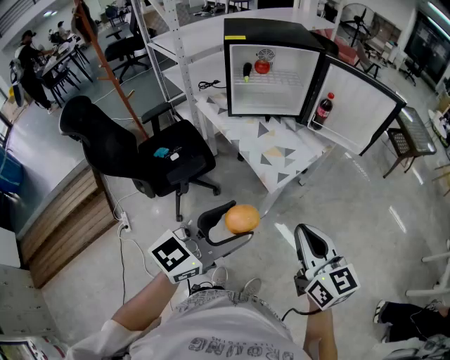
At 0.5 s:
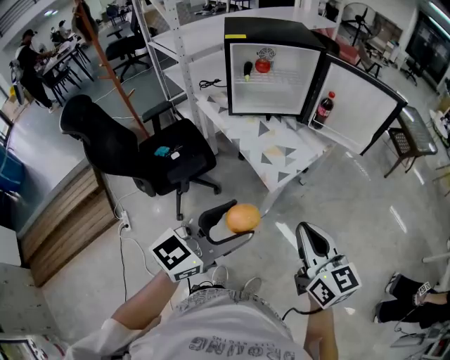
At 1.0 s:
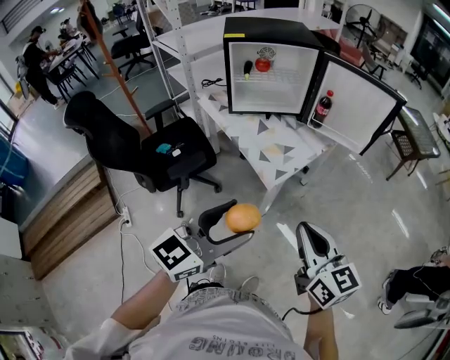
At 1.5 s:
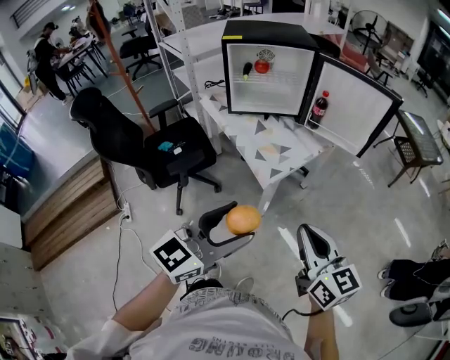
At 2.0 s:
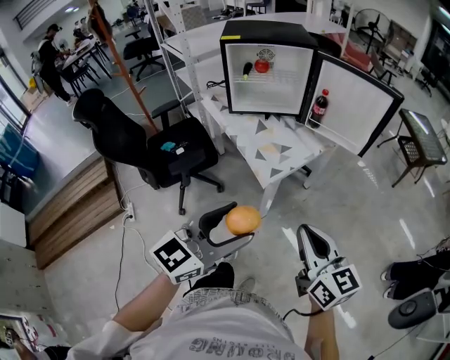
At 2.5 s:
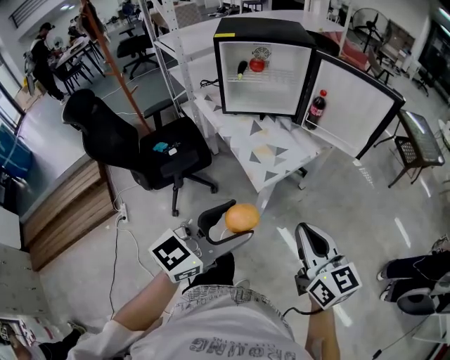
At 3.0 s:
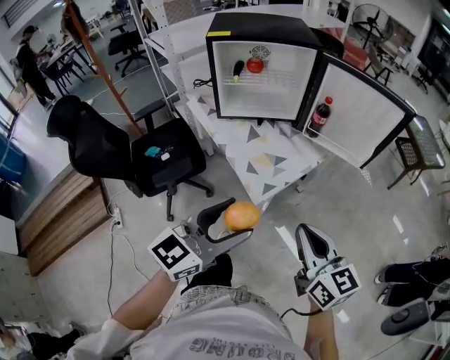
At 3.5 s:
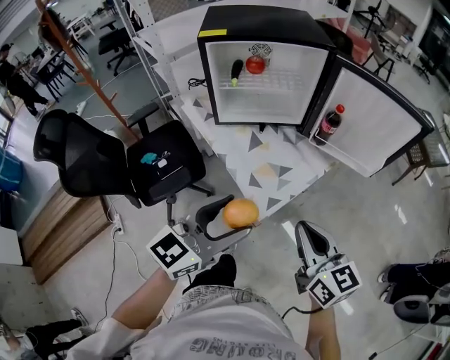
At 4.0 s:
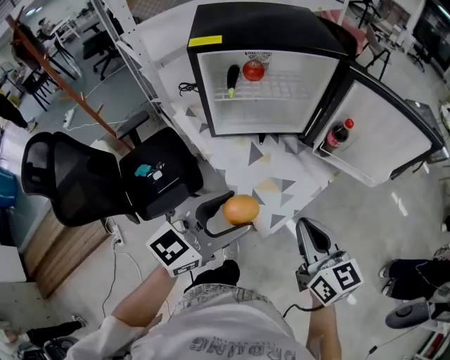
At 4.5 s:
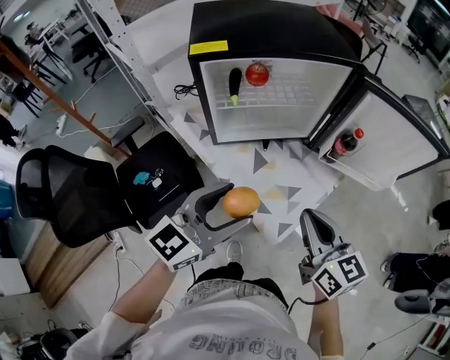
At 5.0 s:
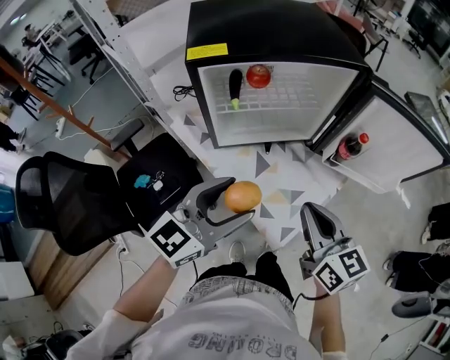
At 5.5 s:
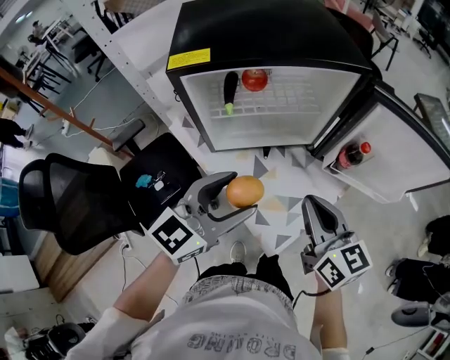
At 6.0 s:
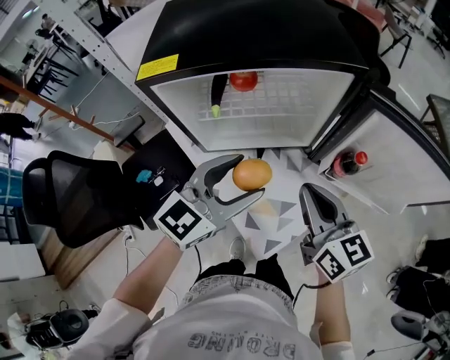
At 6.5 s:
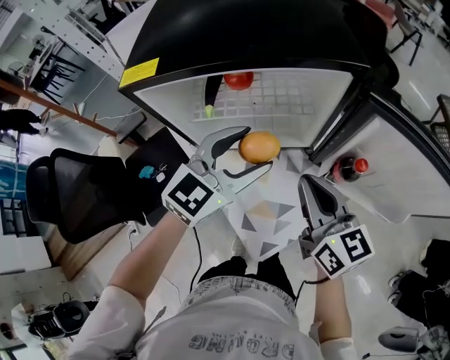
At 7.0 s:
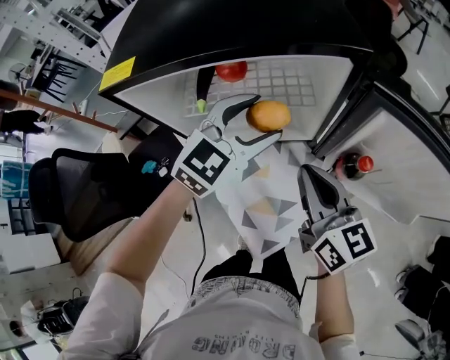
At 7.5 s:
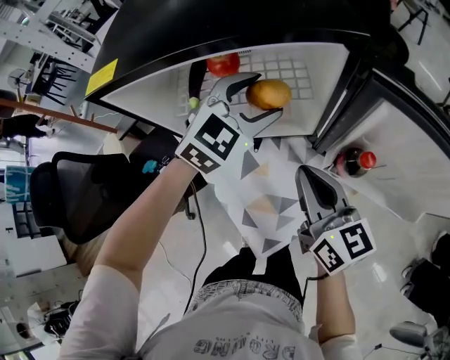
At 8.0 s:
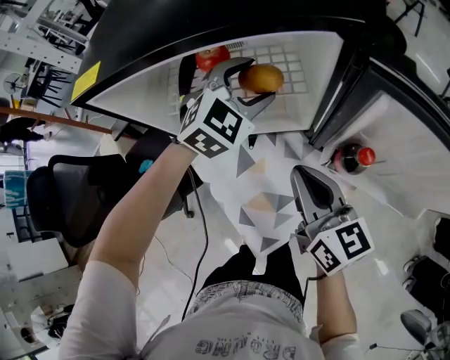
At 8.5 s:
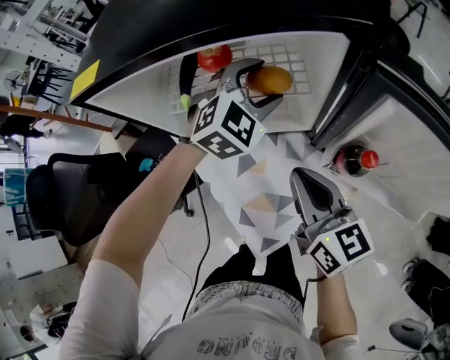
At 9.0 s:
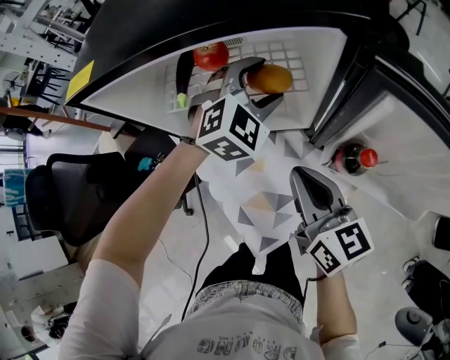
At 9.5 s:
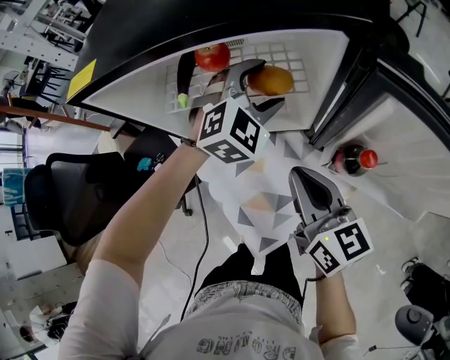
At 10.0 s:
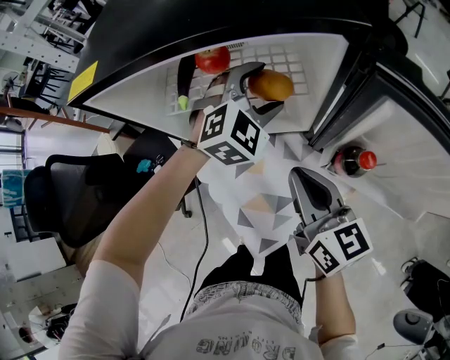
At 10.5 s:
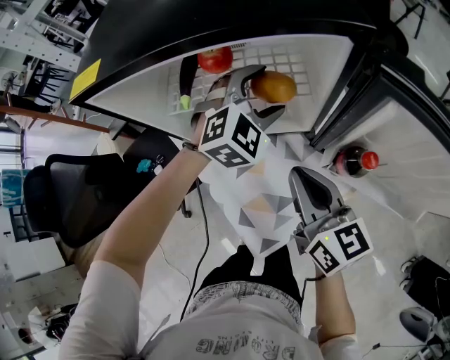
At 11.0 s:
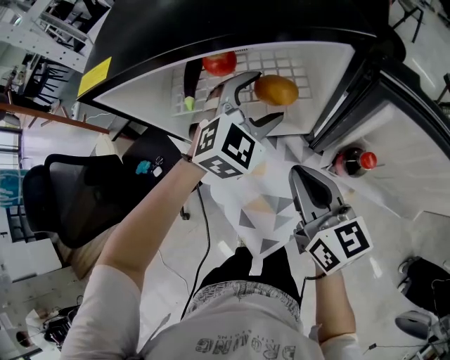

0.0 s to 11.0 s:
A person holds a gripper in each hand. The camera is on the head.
0.0 to 2.0 s: The two grippers go about 10 cm to the right.
2.0 to 3.5 s: Both grippers move forward, approximately 20 cm.
3.5 to 5.5 s: Both grippers move forward, approximately 25 cm.
5.5 to 7.5 s: The right gripper heads forward, downward and to the right, covering some 15 cm; the left gripper moves forward and to the right, approximately 30 cm, and turns by approximately 40 degrees.
7.5 to 9.0 s: The left gripper moves approximately 5 cm.
9.0 to 11.0 s: The grippers move only a little.

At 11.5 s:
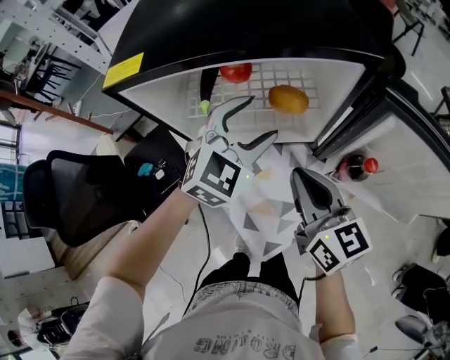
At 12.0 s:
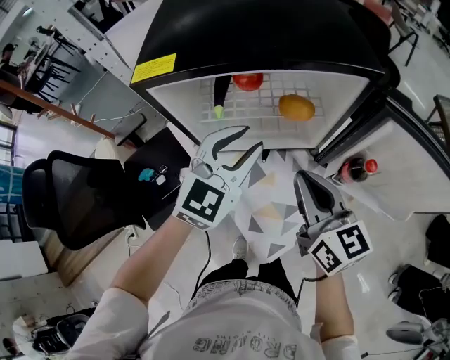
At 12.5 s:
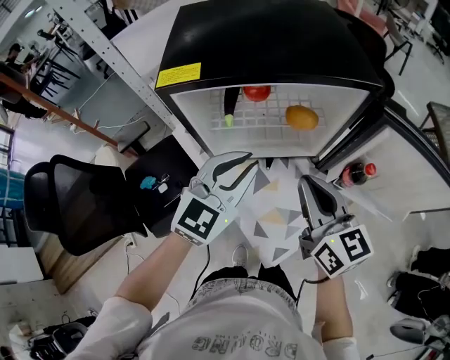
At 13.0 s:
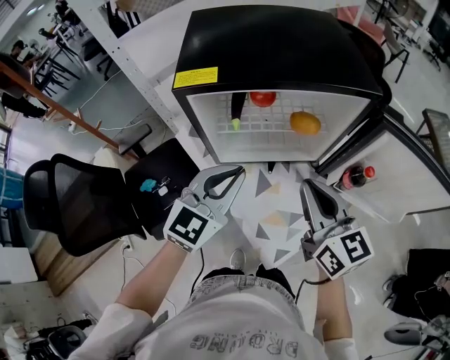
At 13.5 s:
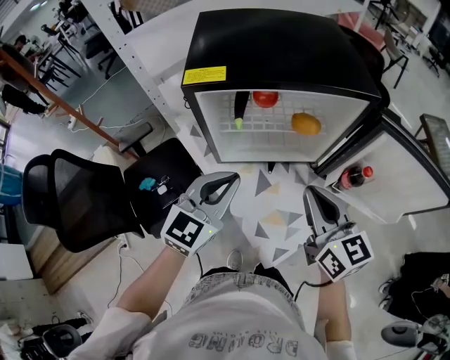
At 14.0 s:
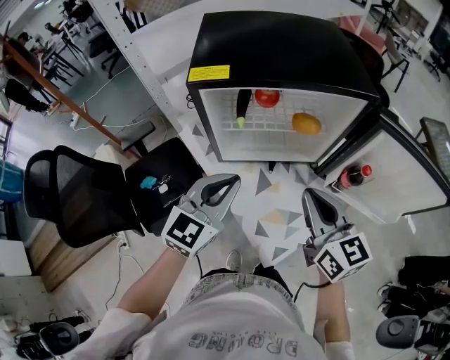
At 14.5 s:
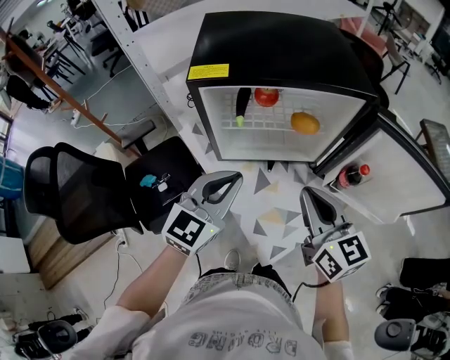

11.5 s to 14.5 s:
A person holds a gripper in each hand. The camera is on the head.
11.5 to 13.0 s: The left gripper travels backward and to the left by about 15 cm, rotates approximately 20 degrees, and closes its fingers, while the right gripper is displaced upward by roughly 5 cm.
13.0 to 14.5 s: The grippers make only small movements.

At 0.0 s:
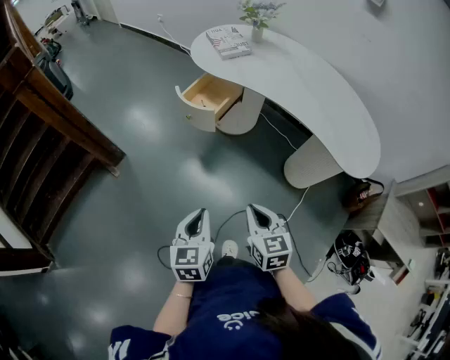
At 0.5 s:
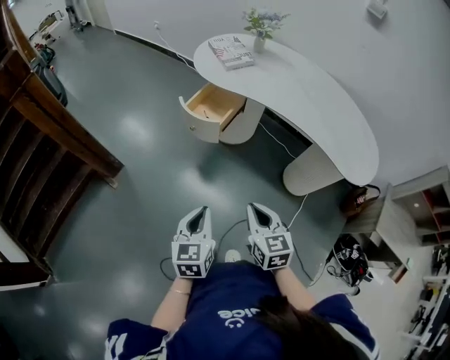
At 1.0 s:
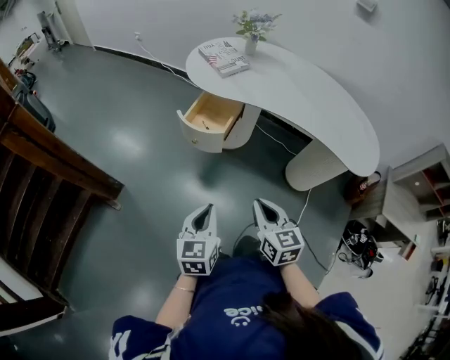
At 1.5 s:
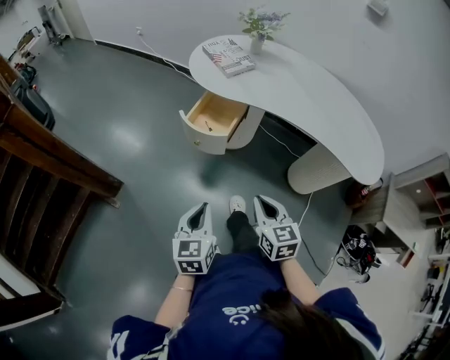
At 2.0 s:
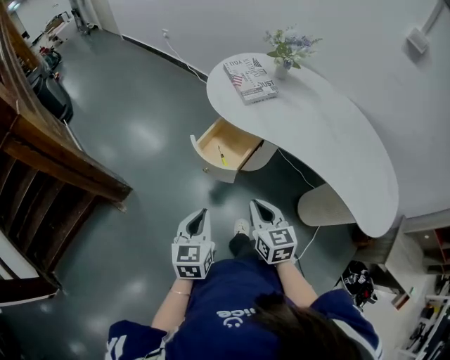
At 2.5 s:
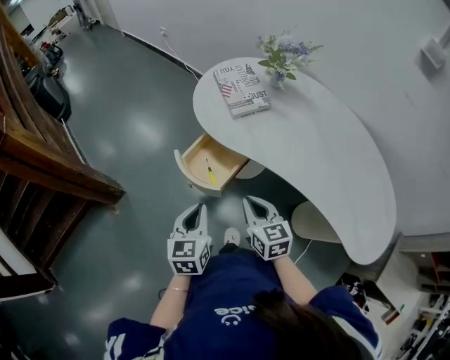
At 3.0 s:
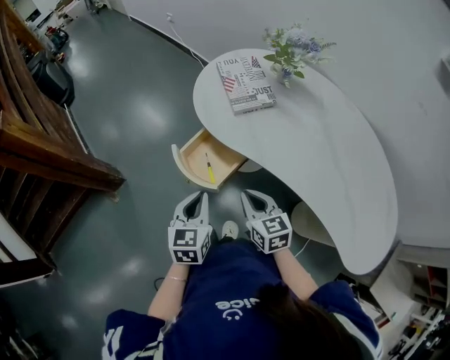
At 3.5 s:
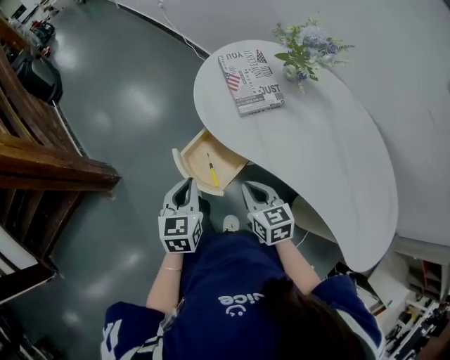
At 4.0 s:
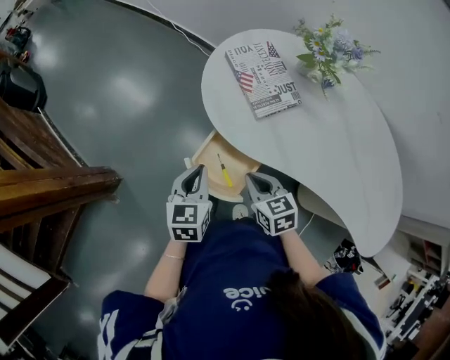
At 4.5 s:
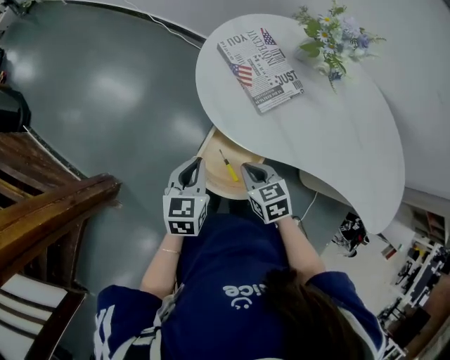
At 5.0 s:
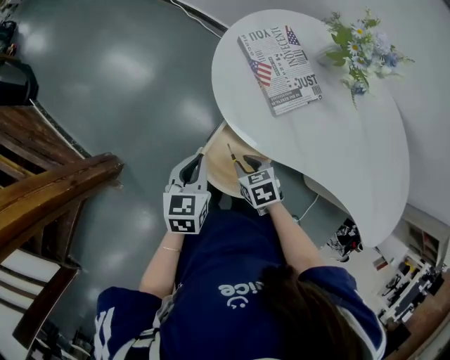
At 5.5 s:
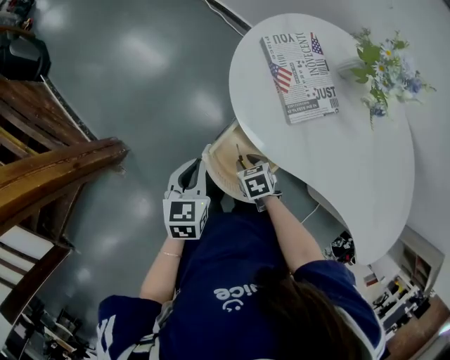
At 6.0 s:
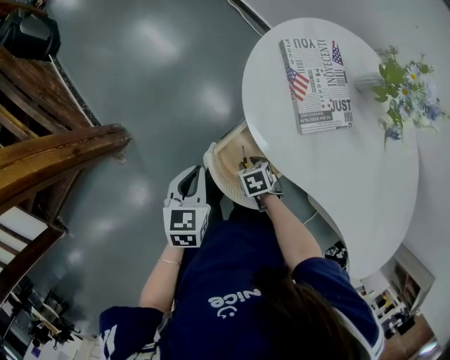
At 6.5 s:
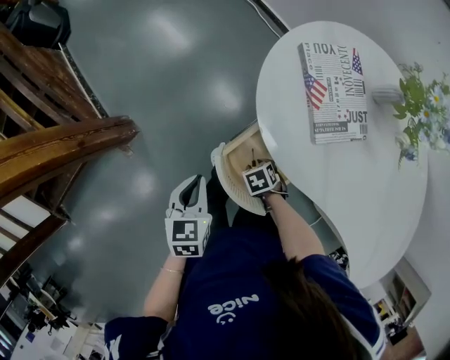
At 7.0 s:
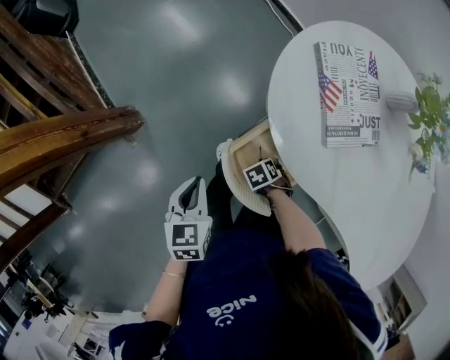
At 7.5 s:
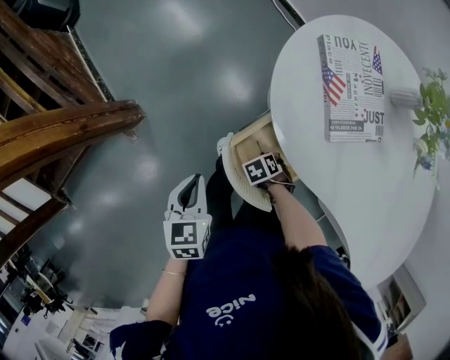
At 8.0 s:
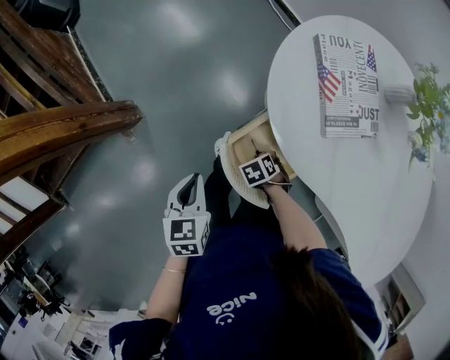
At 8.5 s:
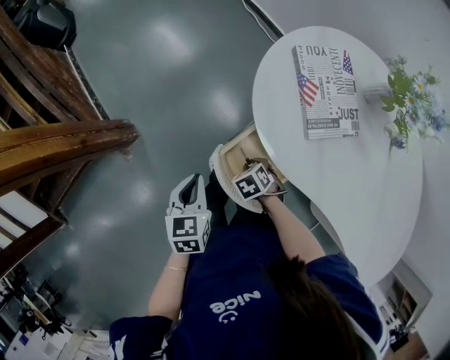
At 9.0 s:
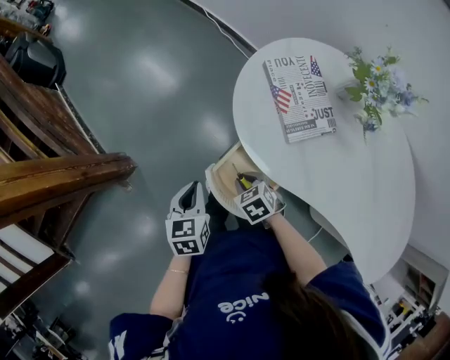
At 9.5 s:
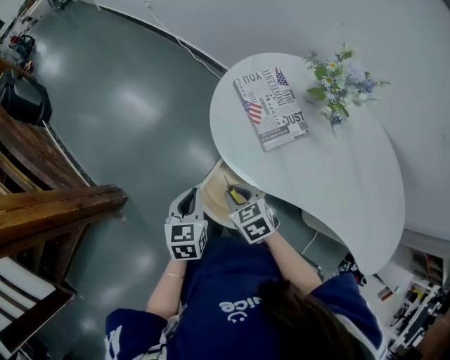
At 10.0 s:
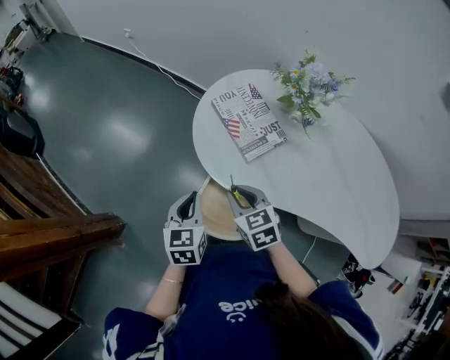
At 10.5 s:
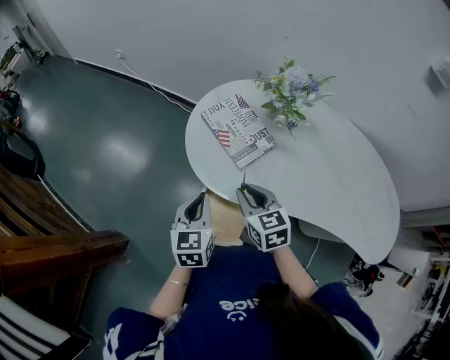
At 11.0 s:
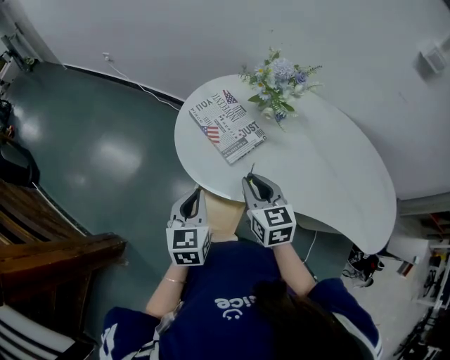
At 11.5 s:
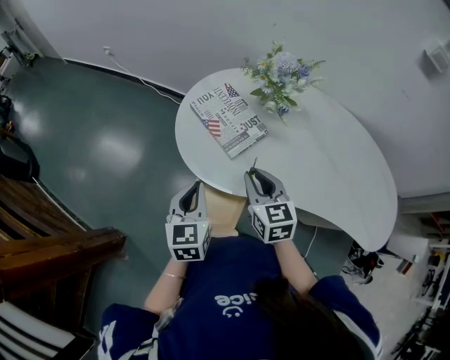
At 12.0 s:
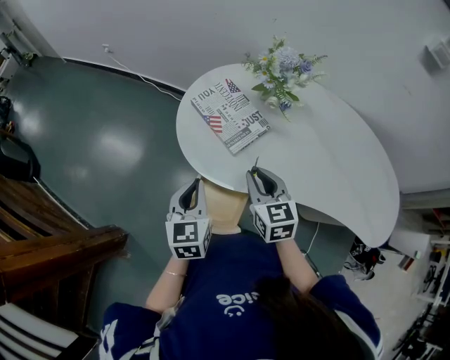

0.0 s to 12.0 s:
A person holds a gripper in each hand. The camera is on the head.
0.0 to 2.0 s: Both grippers move forward, some 25 cm.
2.0 to 4.0 s: The two grippers go roughly 30 cm forward.
4.0 to 6.0 s: The right gripper heads downward, covering about 20 cm, tips its fingers downward by roughly 30 degrees, and opens its fingers; the left gripper ends up about 10 cm from where it was.
6.0 to 8.0 s: The right gripper goes approximately 5 cm downward; the left gripper ends up approximately 5 cm from where it was.
8.0 to 10.0 s: The right gripper goes approximately 30 cm upward, and tips its fingers upward by about 40 degrees. Meanwhile the left gripper ends up about 20 cm from where it was, and turns by some 30 degrees.
10.0 to 12.0 s: The left gripper changes place by roughly 5 cm; the right gripper goes some 10 cm to the right and upward, and turns by about 20 degrees.

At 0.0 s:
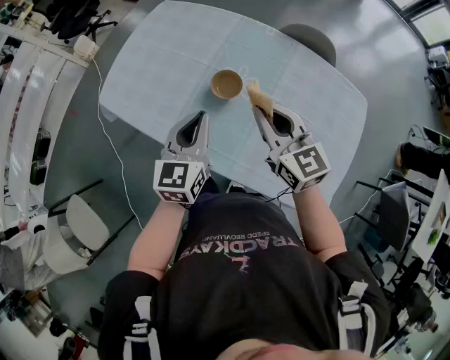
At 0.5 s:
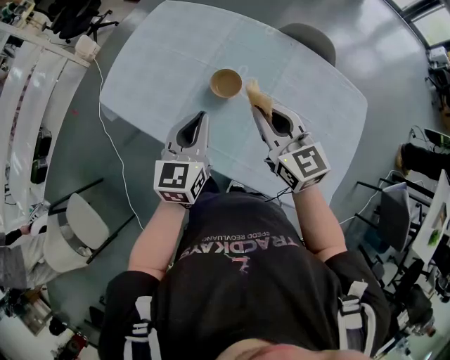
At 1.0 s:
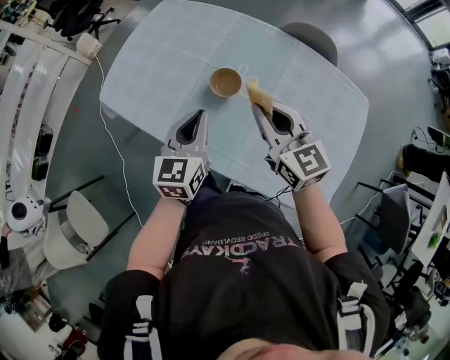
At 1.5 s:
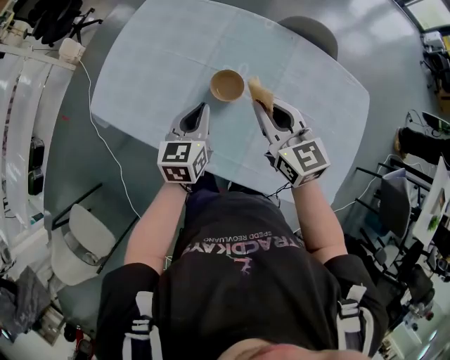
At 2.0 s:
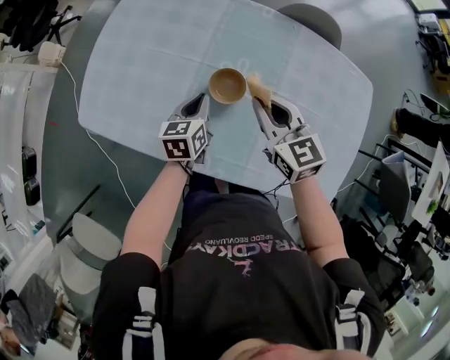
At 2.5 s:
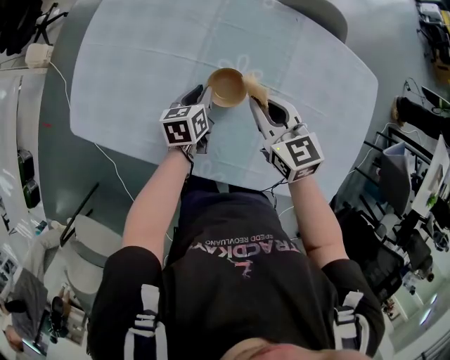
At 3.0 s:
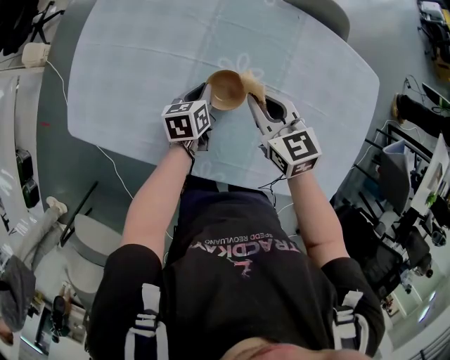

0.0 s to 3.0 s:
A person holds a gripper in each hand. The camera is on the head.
0.0 to 1.5 s: The right gripper changes place by roughly 5 cm. Meanwhile the left gripper goes approximately 10 cm downward and forward.
1.5 to 3.0 s: Both grippers move downward and forward, about 20 cm. The left gripper turns by about 30 degrees.
